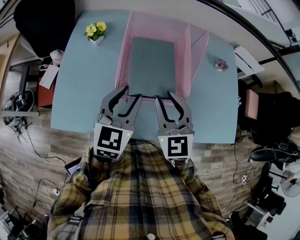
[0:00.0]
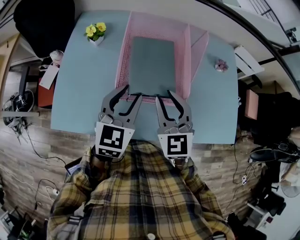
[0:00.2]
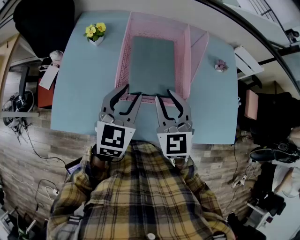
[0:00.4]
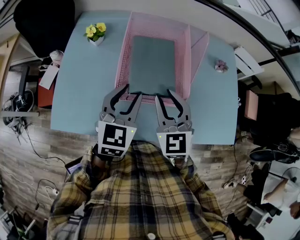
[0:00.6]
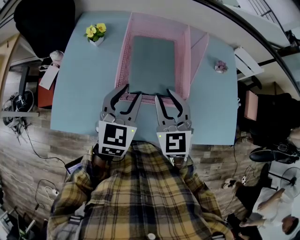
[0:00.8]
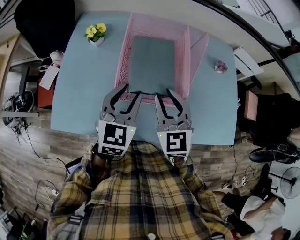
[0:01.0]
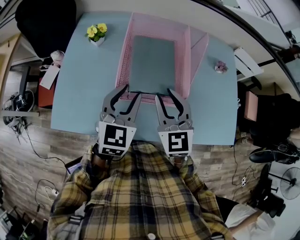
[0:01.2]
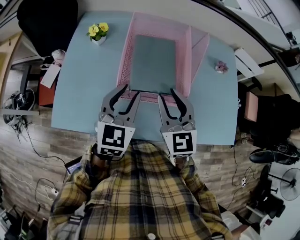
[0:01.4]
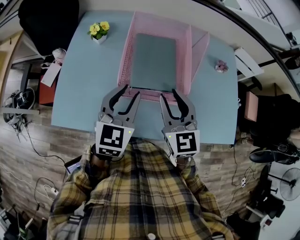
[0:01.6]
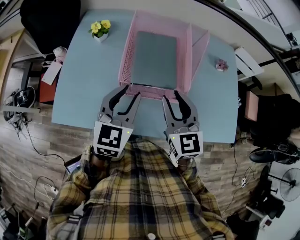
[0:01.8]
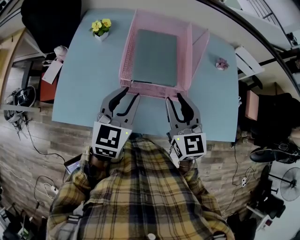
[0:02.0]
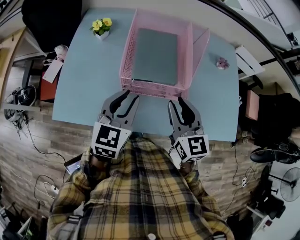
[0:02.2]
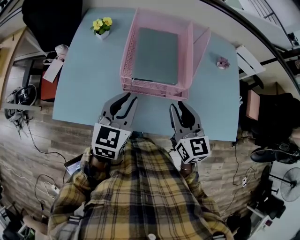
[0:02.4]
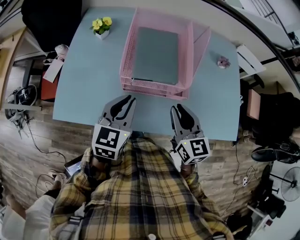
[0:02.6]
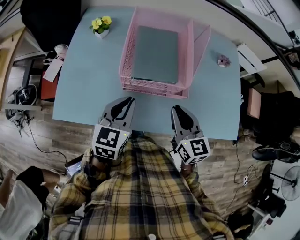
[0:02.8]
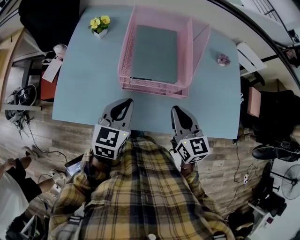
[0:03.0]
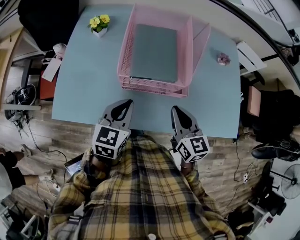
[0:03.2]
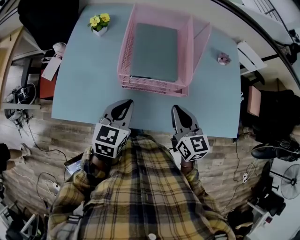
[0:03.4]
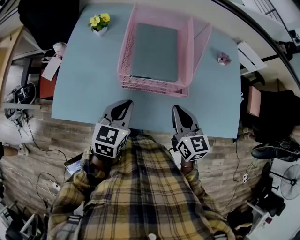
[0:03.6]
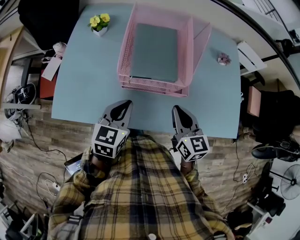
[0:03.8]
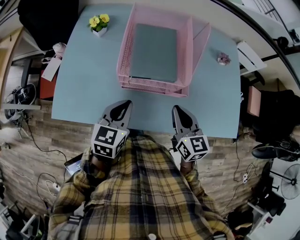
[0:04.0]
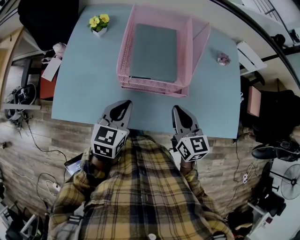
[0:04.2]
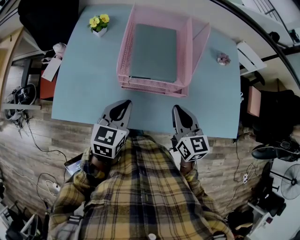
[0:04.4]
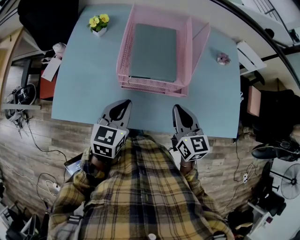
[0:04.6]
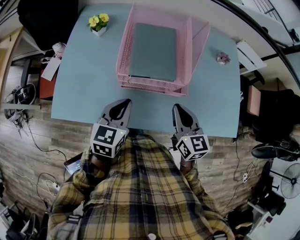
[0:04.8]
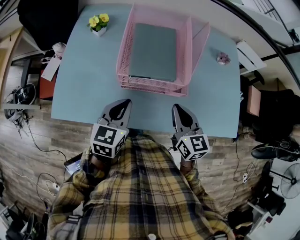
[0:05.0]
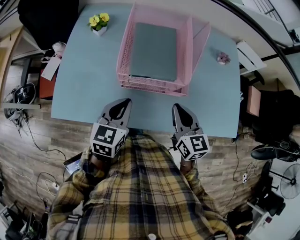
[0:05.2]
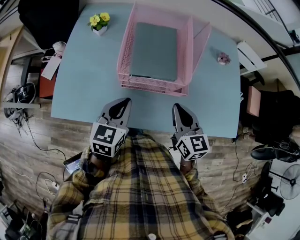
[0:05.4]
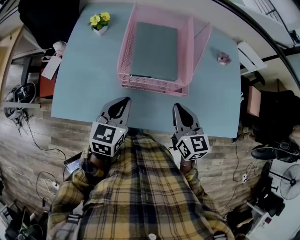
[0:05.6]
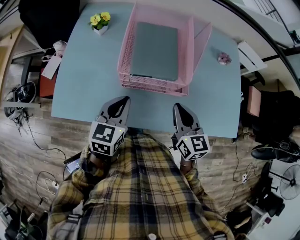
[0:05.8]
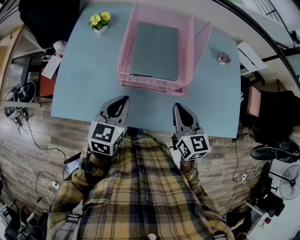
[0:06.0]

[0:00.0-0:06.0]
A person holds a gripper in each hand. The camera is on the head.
0:00.0 to 0:01.6: There are only small adjustments of the grippers.
0:01.6 to 0:03.0: The right gripper moves downward, backward and to the right, roughly 10 cm. The left gripper heads downward and backward, covering some 10 cm, and closes its fingers.
0:03.0 to 0:04.4: The grippers make only small movements.
0:04.4 to 0:06.0: Both grippers stay about where they are.

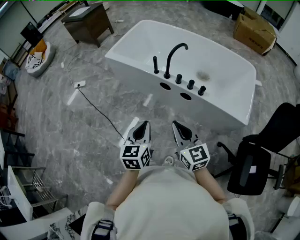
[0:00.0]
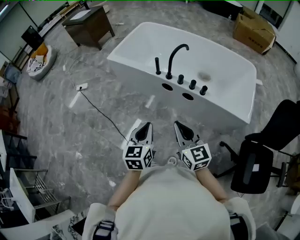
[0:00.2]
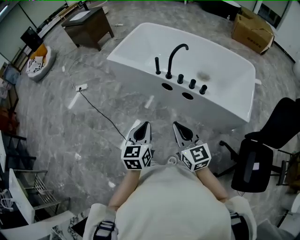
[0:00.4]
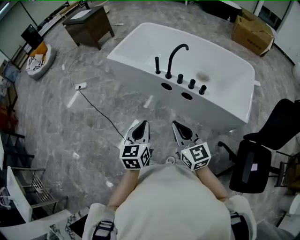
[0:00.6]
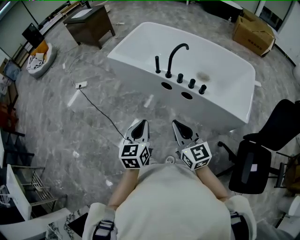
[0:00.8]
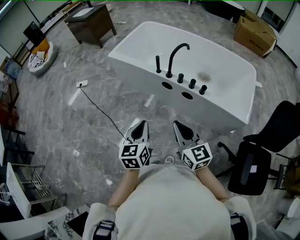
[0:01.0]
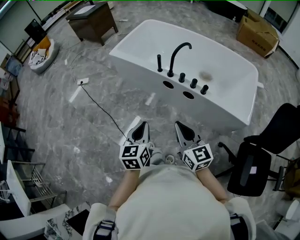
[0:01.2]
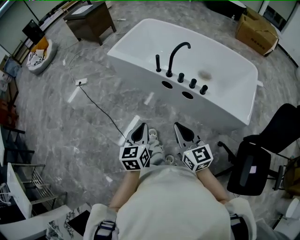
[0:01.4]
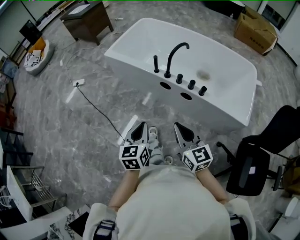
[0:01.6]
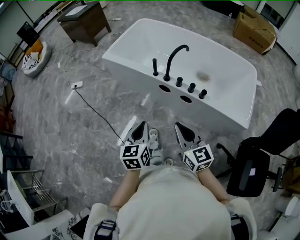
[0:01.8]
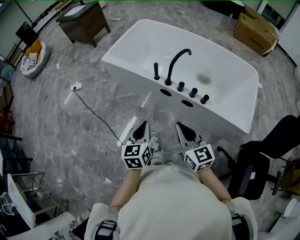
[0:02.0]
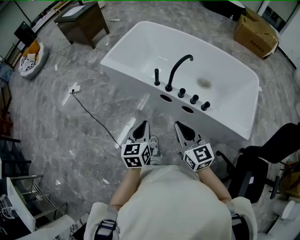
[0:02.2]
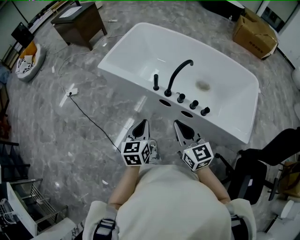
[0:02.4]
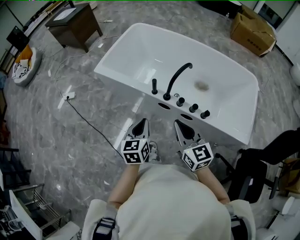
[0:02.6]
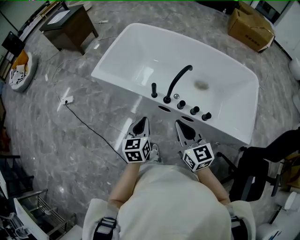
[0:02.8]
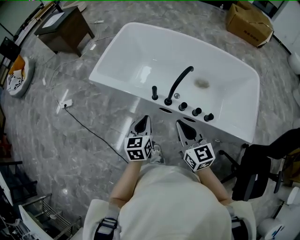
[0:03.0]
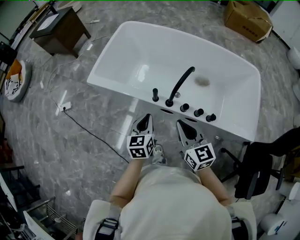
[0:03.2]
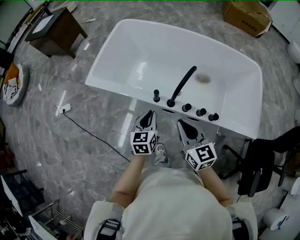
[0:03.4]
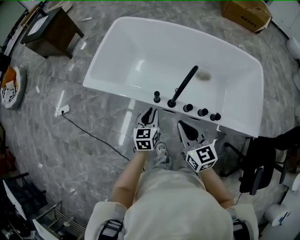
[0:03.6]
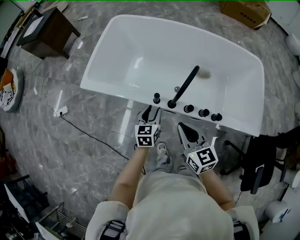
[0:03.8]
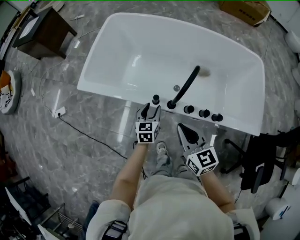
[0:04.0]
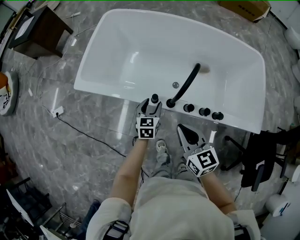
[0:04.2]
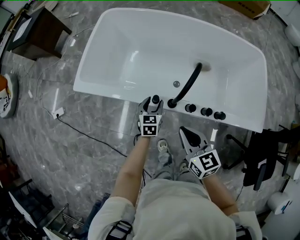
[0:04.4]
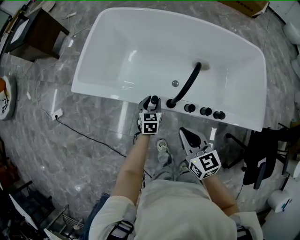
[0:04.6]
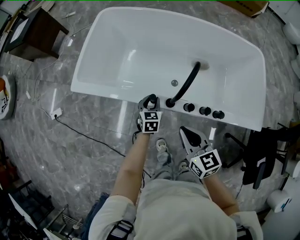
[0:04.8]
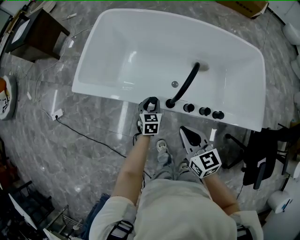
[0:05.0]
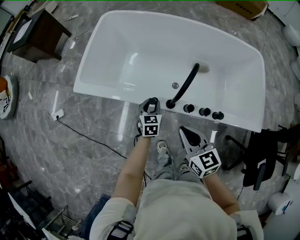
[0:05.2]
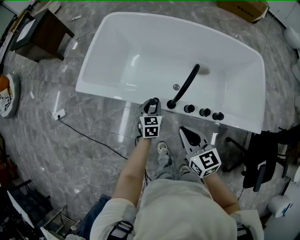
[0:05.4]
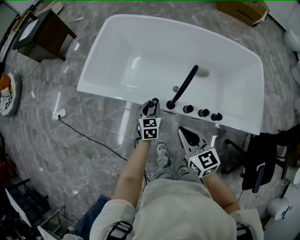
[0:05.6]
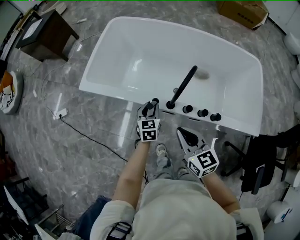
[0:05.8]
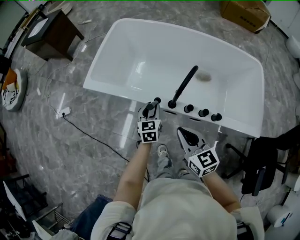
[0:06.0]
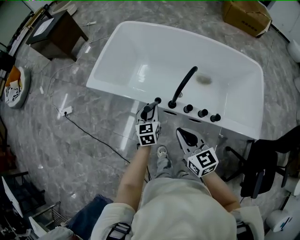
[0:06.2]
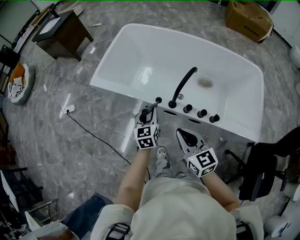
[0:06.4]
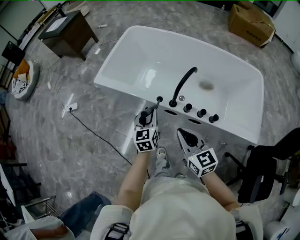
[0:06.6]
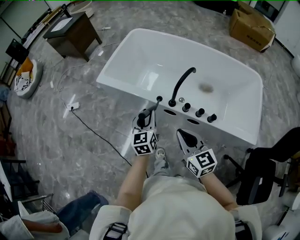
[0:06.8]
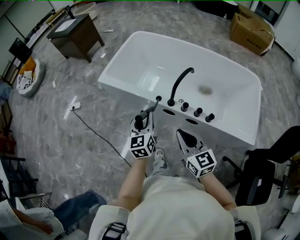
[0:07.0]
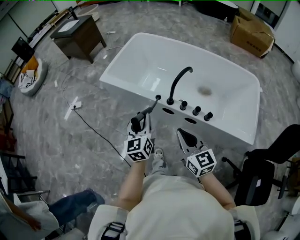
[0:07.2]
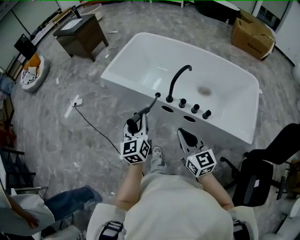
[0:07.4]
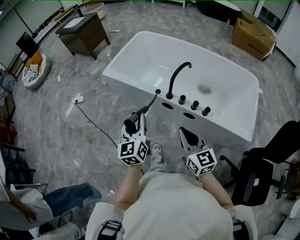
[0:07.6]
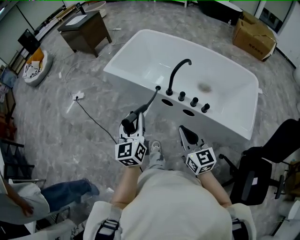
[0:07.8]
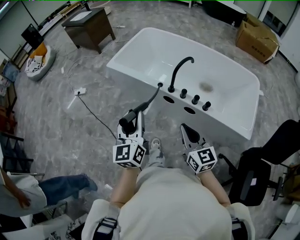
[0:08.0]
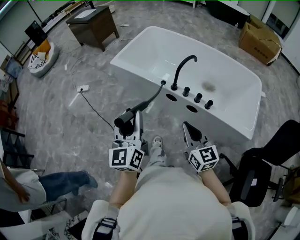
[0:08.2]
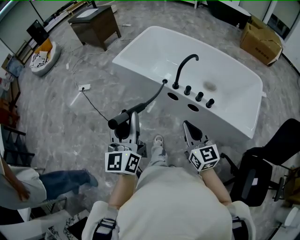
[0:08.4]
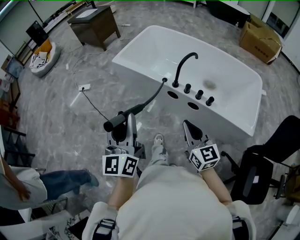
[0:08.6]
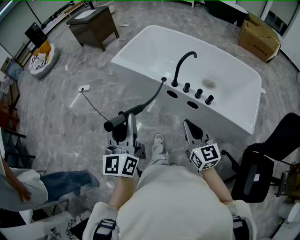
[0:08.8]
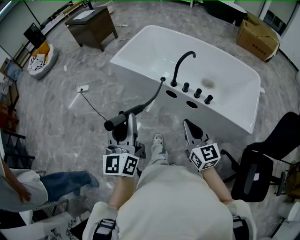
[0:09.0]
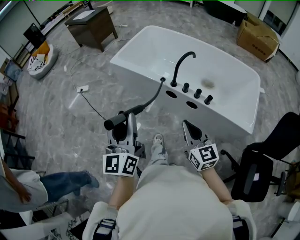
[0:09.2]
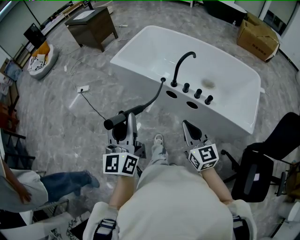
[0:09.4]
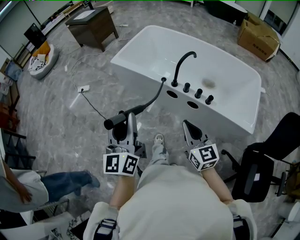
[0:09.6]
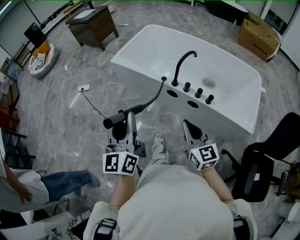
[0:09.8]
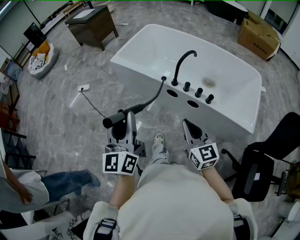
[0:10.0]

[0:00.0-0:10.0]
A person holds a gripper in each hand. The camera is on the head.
0:00.0 to 0:01.4: The grippers stay close to where they were, moving slightly.
0:01.4 to 0:02.8: The grippers both shift forward by about 30 cm.
0:02.8 to 0:04.2: The right gripper goes some 15 cm forward and downward, while the left gripper goes about 25 cm forward and downward, and opens its fingers.
0:04.2 to 0:05.8: The grippers move only a little.
0:05.8 to 0:07.2: The left gripper heads backward and upward, covering roughly 30 cm, and turns by some 30 degrees, while the right gripper moves backward and upward, roughly 15 cm.
0:07.2 to 0:08.6: The right gripper is displaced backward by approximately 10 cm. The left gripper goes about 30 cm backward, upward and to the left, and swivels roughly 20 degrees.
0:08.6 to 0:10.0: Neither gripper changes place.

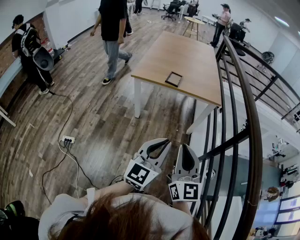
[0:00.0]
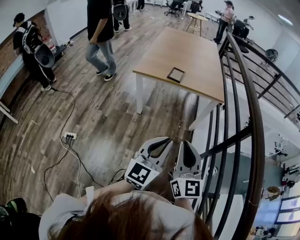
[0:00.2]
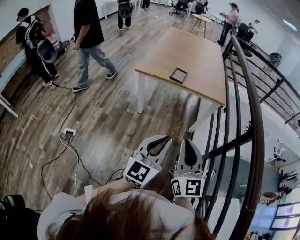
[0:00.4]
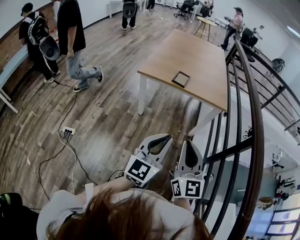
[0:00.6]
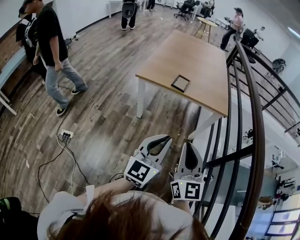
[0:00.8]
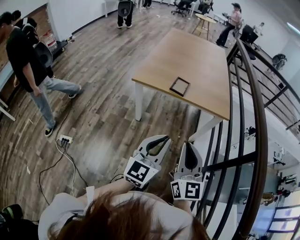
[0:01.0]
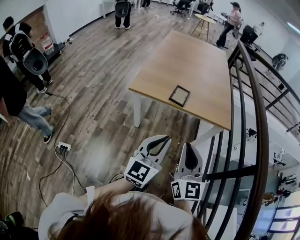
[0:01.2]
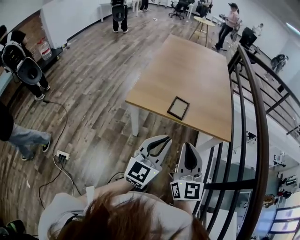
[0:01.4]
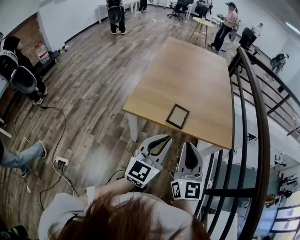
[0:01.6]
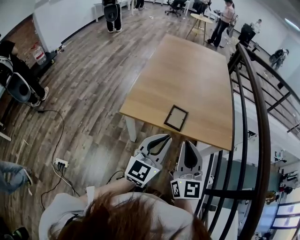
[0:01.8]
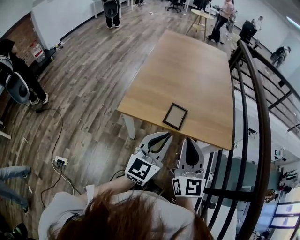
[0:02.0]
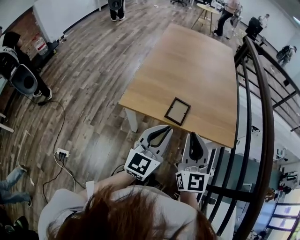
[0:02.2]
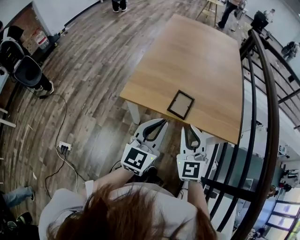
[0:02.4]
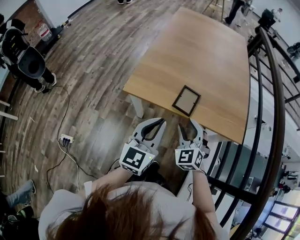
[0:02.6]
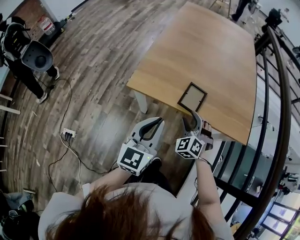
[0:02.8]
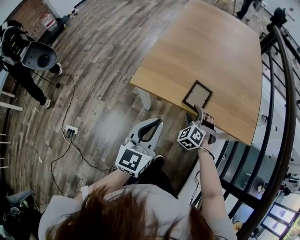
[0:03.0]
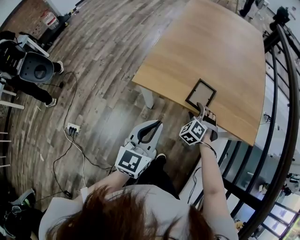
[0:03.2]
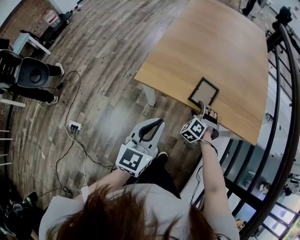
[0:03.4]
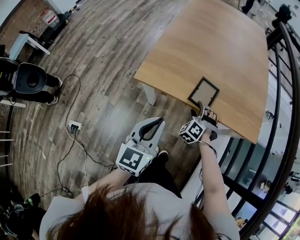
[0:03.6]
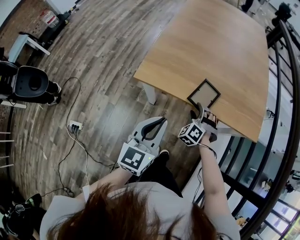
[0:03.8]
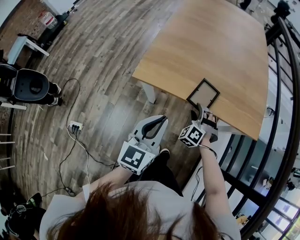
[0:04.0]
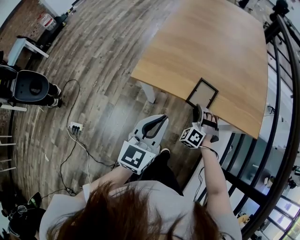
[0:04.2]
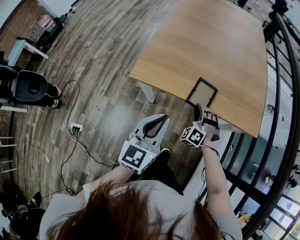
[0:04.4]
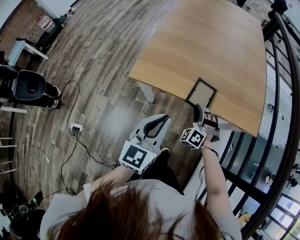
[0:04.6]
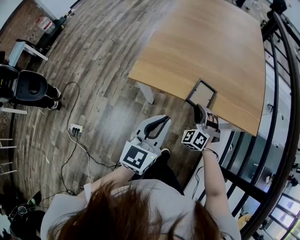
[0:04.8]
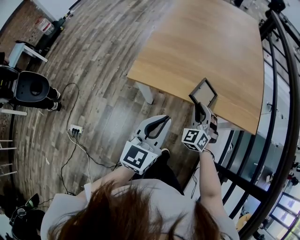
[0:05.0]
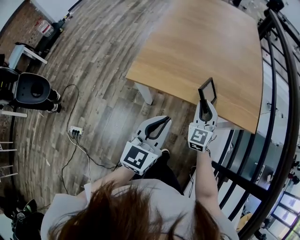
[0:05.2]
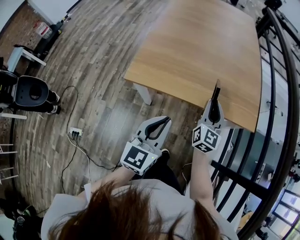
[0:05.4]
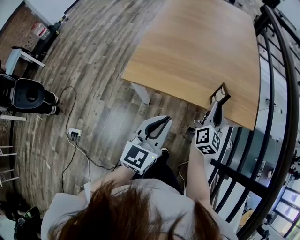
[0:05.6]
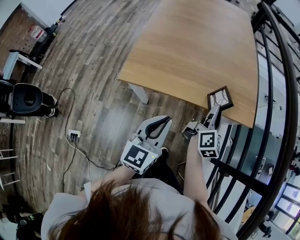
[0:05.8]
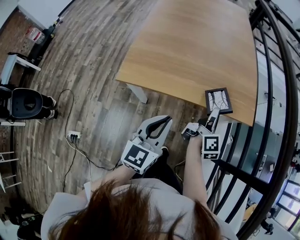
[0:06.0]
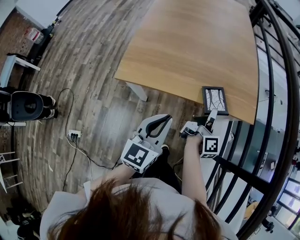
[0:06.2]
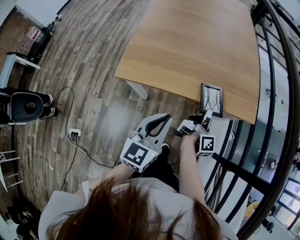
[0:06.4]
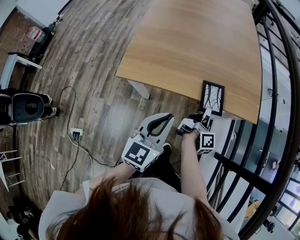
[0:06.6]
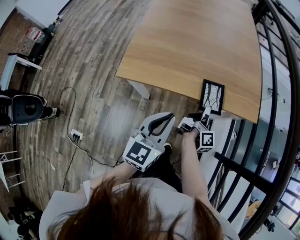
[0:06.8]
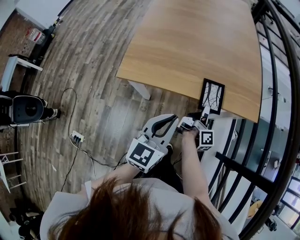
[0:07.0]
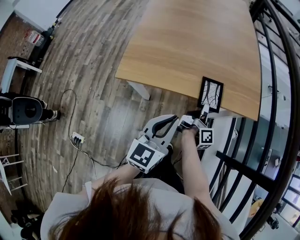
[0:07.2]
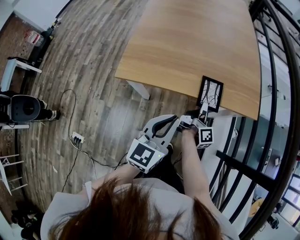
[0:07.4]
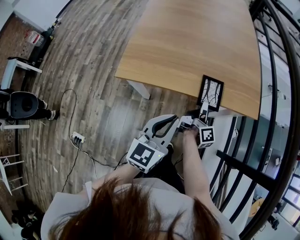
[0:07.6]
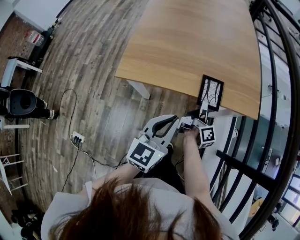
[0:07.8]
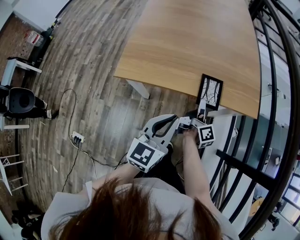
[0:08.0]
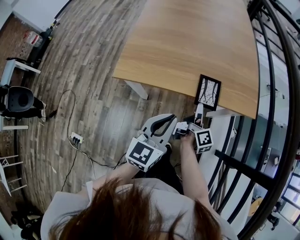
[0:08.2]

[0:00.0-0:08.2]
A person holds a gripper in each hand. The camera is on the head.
0:00.0 to 0:01.6: The pair of grippers is taken forward, roughly 40 cm.
0:01.6 to 0:03.2: The right gripper goes roughly 40 cm downward and forward, tips its fingers downward by roughly 60 degrees, and opens up. The left gripper moves downward, to the left and forward, approximately 15 cm, and rotates some 20 degrees.
0:03.2 to 0:05.0: The right gripper heads upward, covering approximately 5 cm, swivels about 30 degrees, and closes up. Meanwhile the left gripper shifts by approximately 5 cm.
0:05.0 to 0:06.6: The left gripper changes place by about 5 cm. Meanwhile the right gripper shifts approximately 15 cm to the right, and rotates around the line of its fingers by roughly 130 degrees, clockwise from behind.
0:06.6 to 0:08.2: The right gripper opens up.
